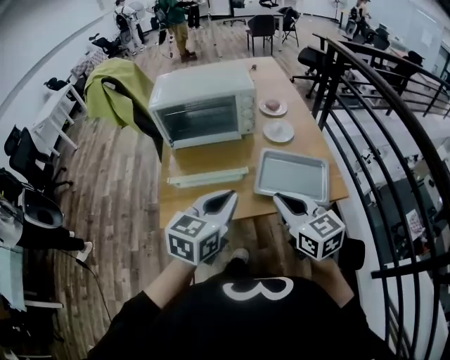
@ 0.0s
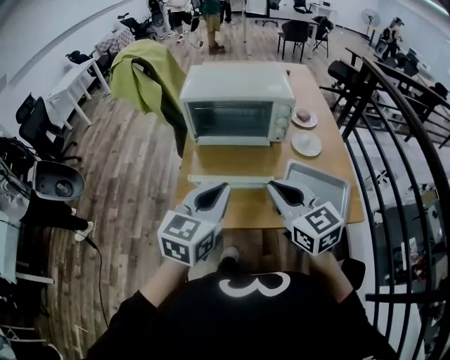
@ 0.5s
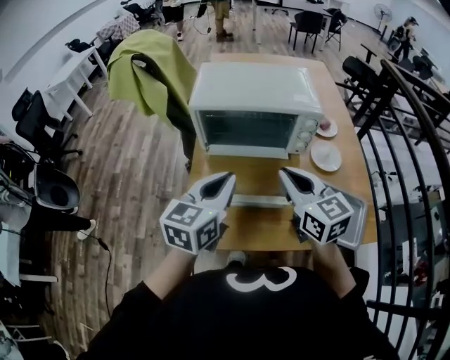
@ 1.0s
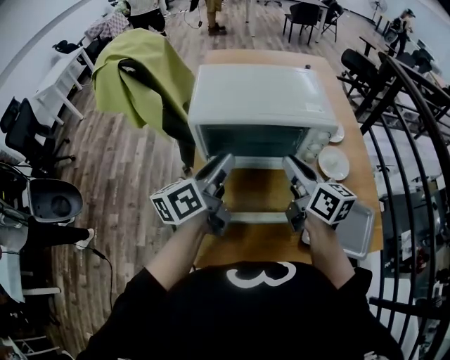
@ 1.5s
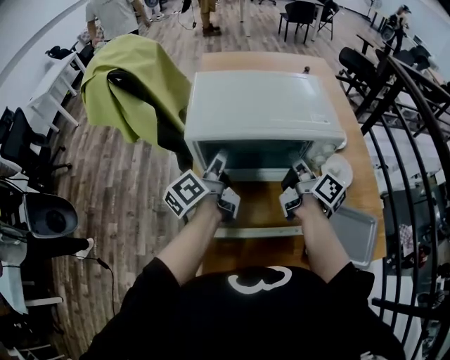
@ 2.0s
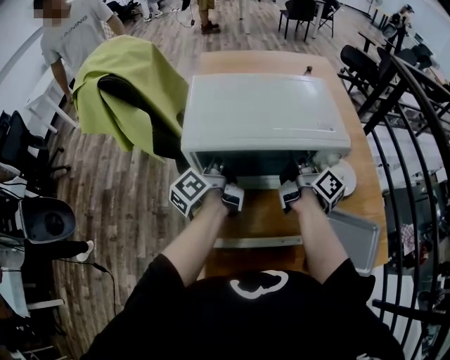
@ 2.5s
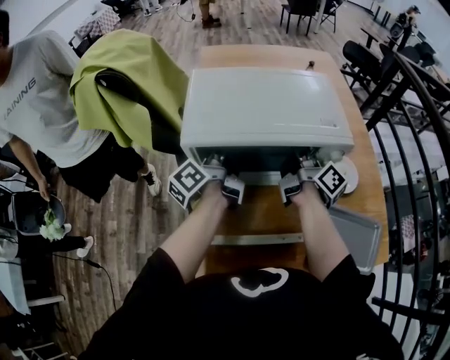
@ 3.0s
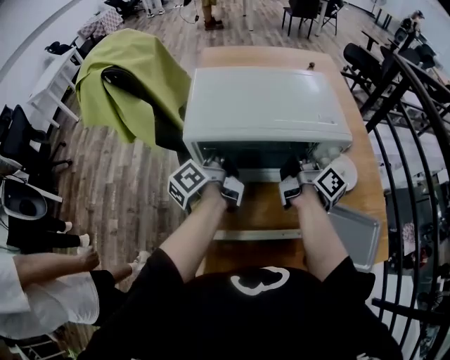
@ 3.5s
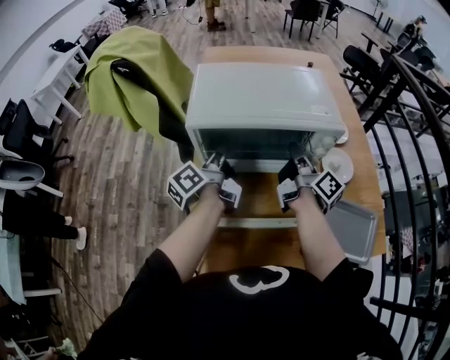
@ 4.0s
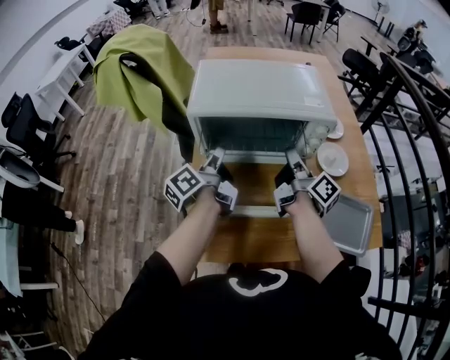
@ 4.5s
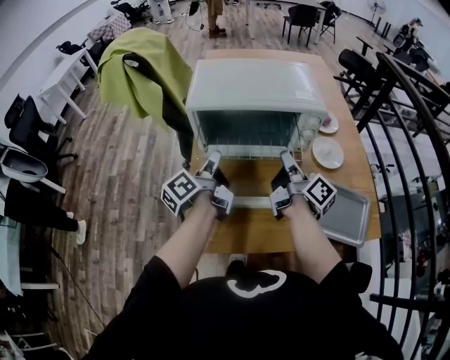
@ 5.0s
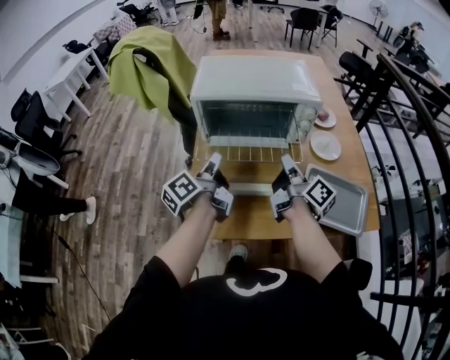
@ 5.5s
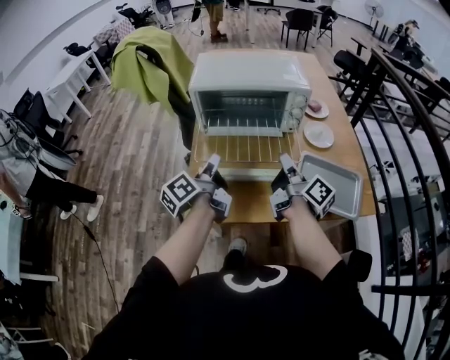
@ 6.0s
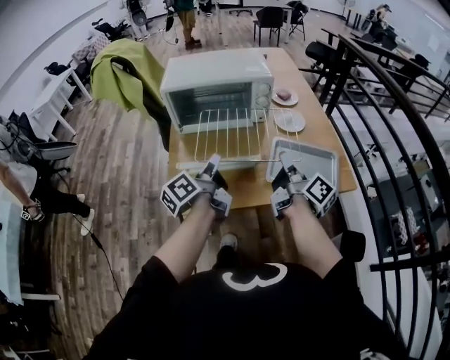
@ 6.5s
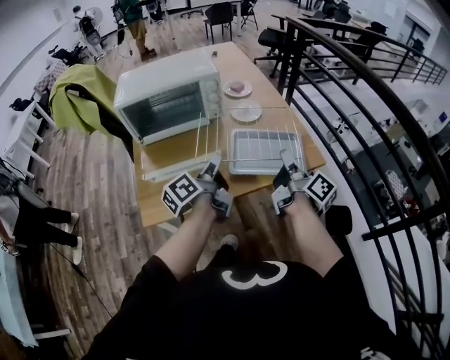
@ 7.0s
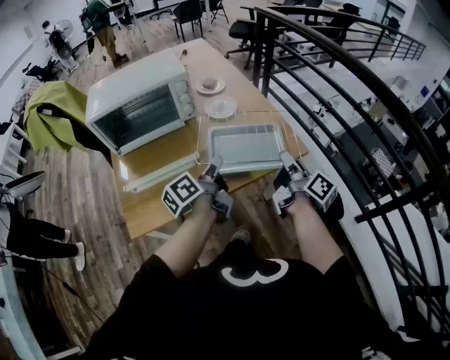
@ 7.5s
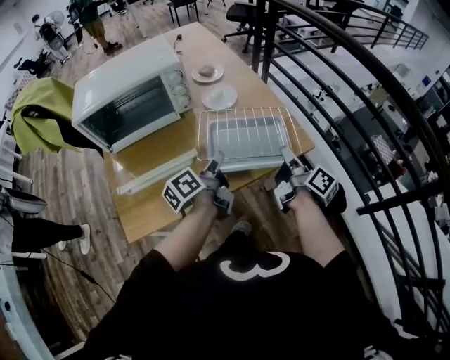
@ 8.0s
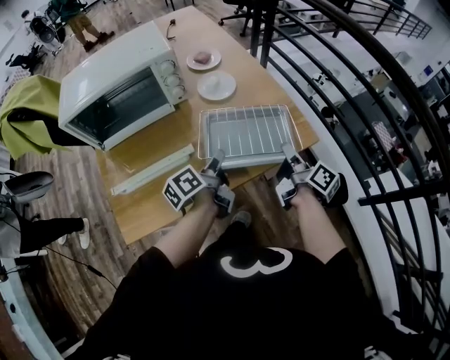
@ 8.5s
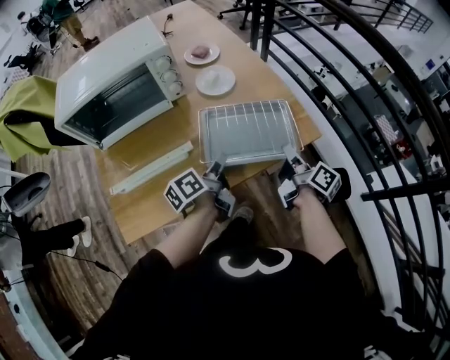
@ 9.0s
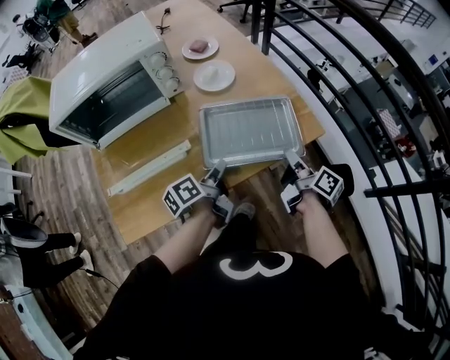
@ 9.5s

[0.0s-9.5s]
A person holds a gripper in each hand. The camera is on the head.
0.0s to 2.0s: Both grippers are carried forward, approximately 50 cm. The right gripper twists about 60 degrees clockwise, seen from behind, and opens. The left gripper rotates around the line of its fingers by roughly 60 degrees, counterclockwise from behind, and opens its fingers.
2.0s to 4.0s: The left gripper closes. The right gripper closes up.
4.0s to 5.5s: The grippers both shift backward by some 15 cm.
5.5s to 7.5s: The left gripper moves approximately 35 cm, and turns by some 30 degrees. Meanwhile the right gripper changes place by approximately 40 cm, and changes its angle by about 20 degrees.
7.5s to 9.5s: Both grippers move downward, approximately 15 cm.

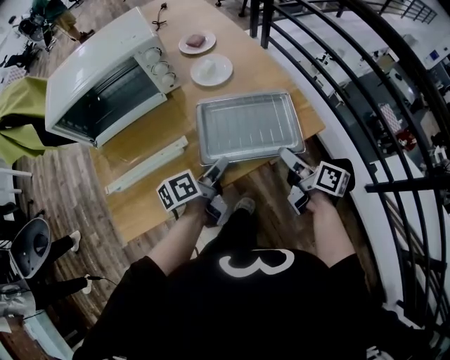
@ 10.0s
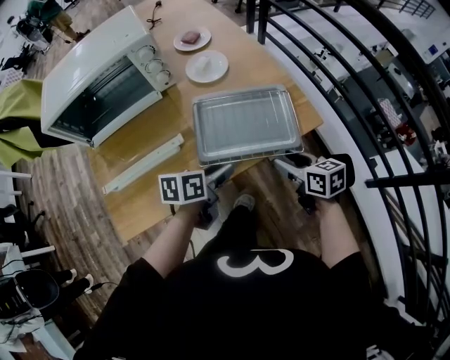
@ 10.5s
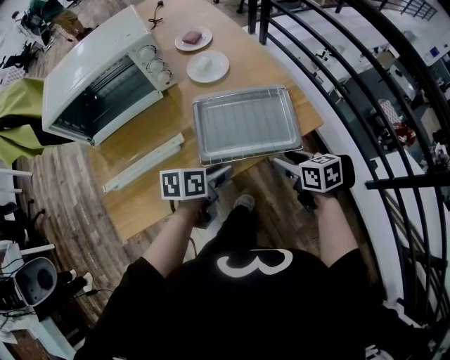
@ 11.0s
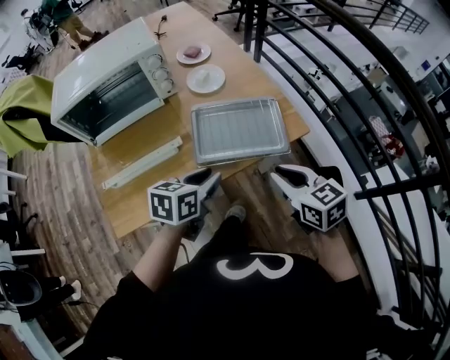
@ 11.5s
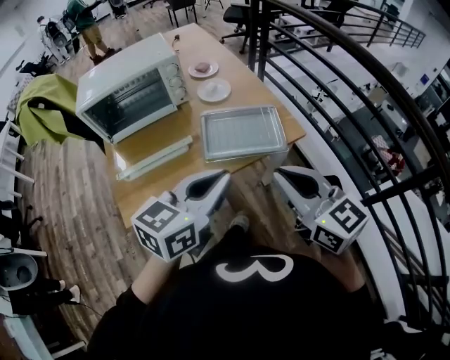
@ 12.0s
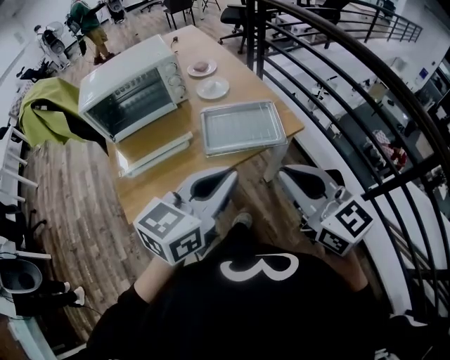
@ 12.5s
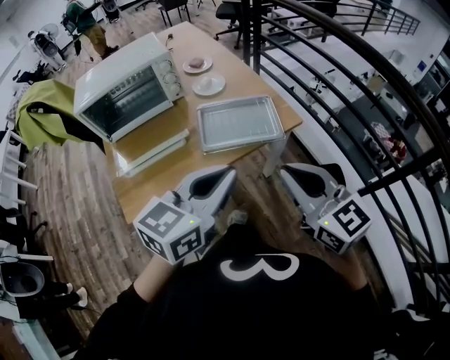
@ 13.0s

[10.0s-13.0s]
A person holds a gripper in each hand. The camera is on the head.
10.0s to 11.5s: The two grippers go about 10 cm upward and backward. The right gripper rolls counterclockwise, seen from behind, by roughly 50 degrees, and closes, while the left gripper rolls clockwise, seen from behind, by some 40 degrees.
11.5s to 13.0s: The grippers both shift upward and backward by about 20 cm. The right gripper changes its angle by roughly 20 degrees; the left gripper turns by some 30 degrees, and closes its fingers.

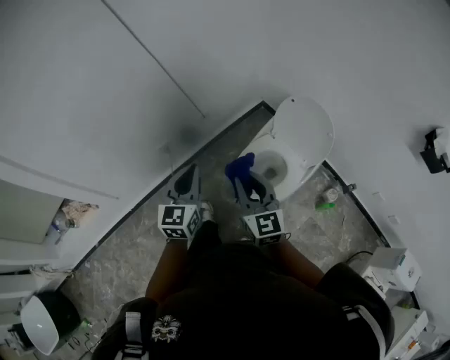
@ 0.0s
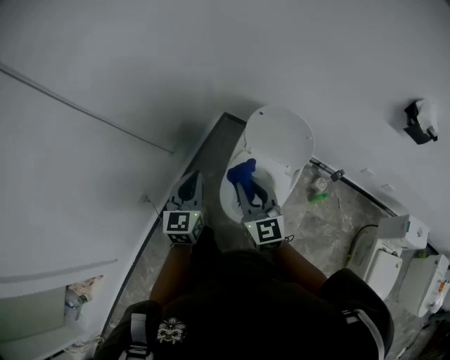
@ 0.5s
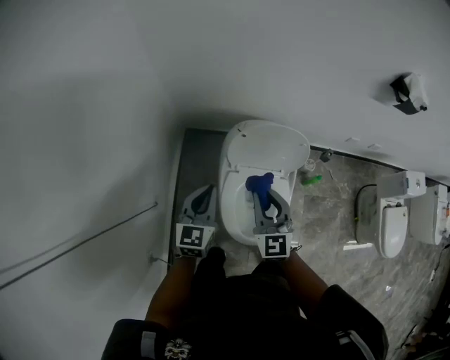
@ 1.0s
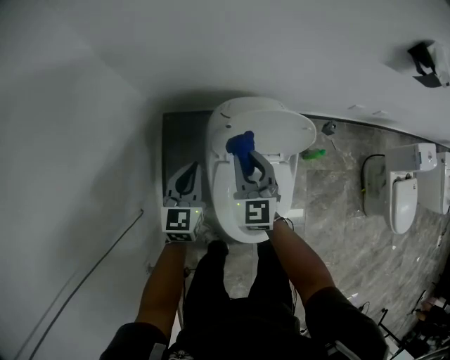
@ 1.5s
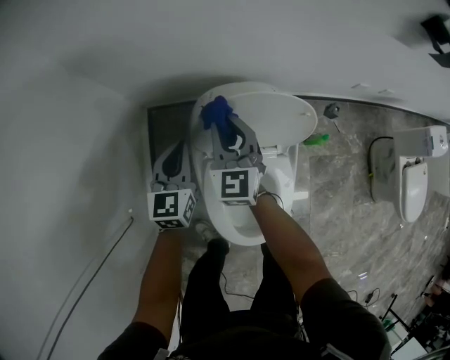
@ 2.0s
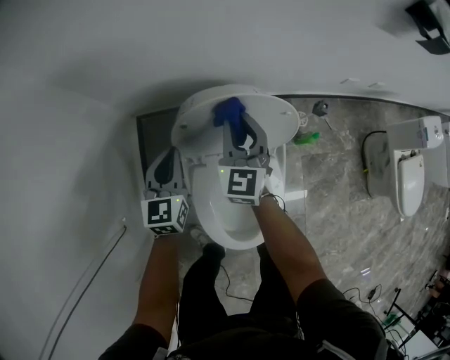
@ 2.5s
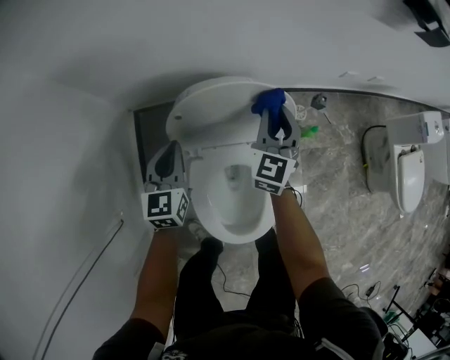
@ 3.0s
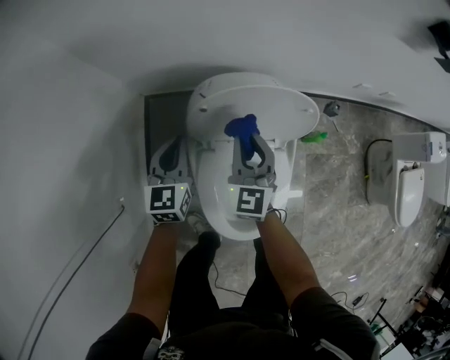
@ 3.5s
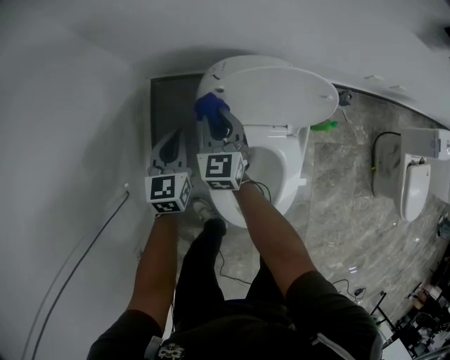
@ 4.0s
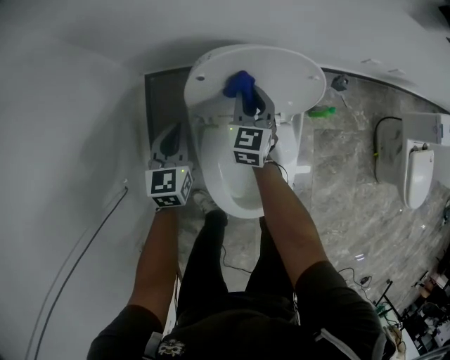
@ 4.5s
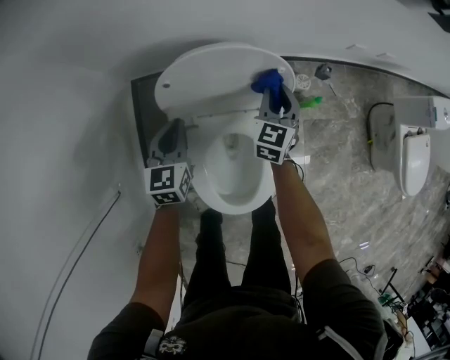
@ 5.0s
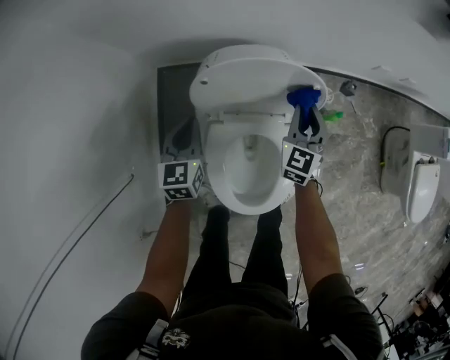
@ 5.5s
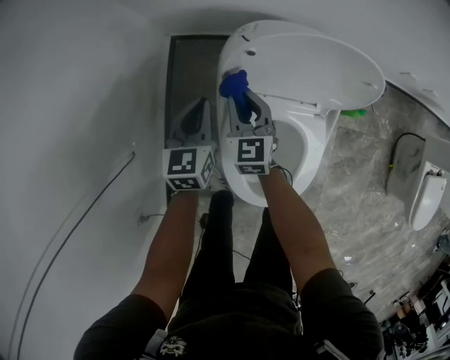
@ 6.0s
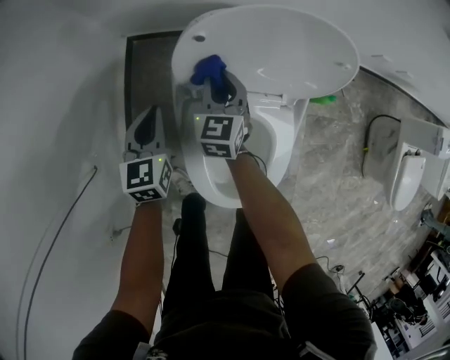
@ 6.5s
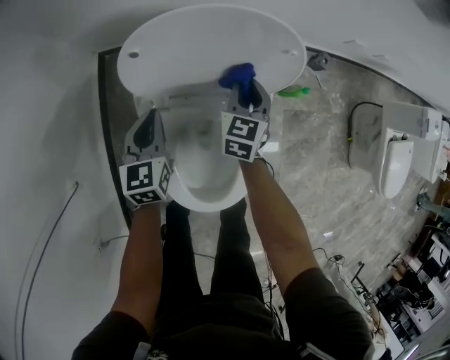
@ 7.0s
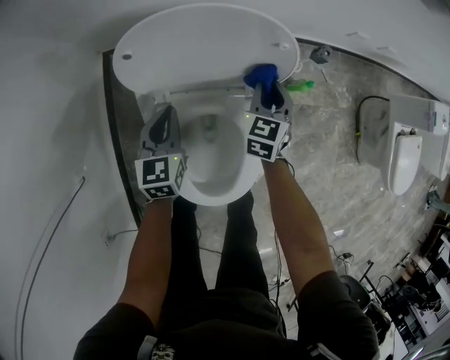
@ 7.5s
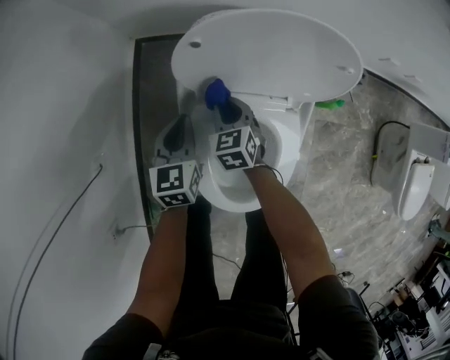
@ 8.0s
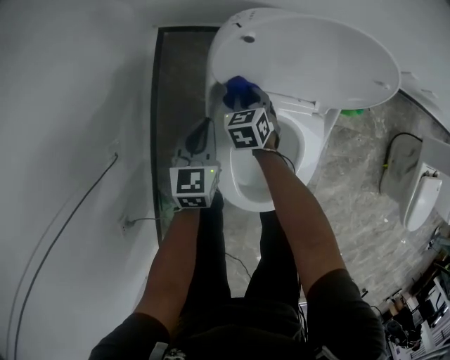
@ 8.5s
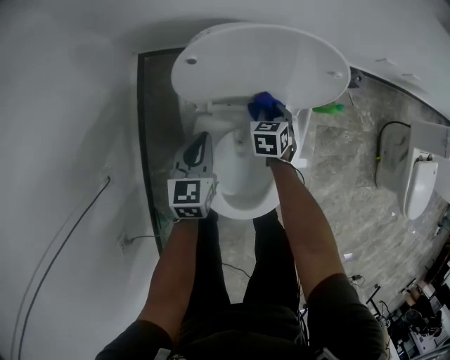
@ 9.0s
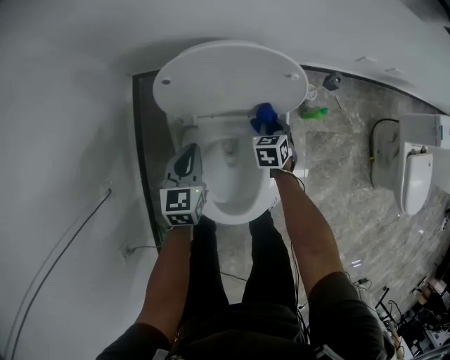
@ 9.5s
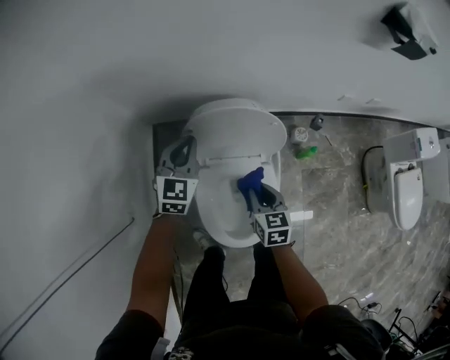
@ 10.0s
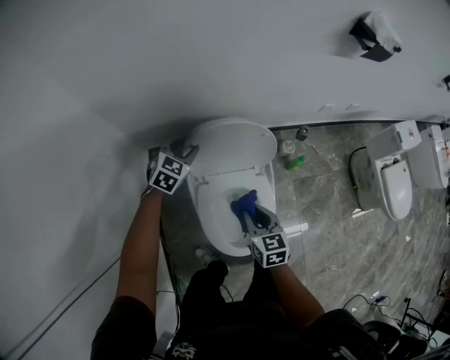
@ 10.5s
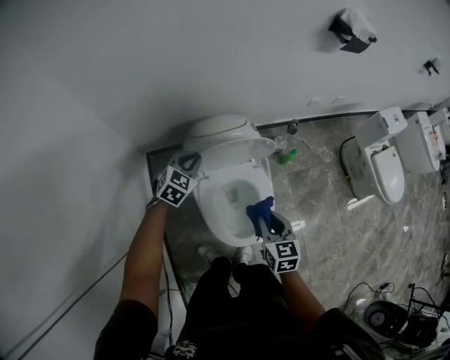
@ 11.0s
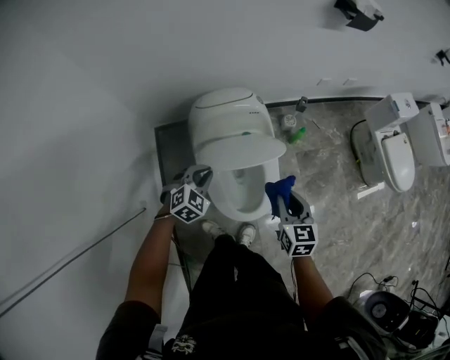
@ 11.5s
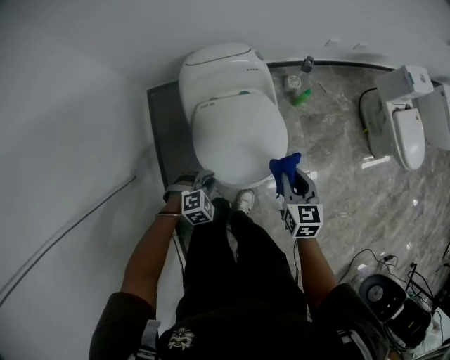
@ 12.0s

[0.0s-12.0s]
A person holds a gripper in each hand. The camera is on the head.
0.0s to 2.0s: The pair of grippers is taken about 50 cm. The right gripper swivels some 60 degrees. The left gripper swivels about 50 degrees.
2.0s to 4.0s: The left gripper shifts some 5 cm downward. The right gripper travels downward by some 10 cm, and reaches some 20 cm to the right, then returns.
4.0s to 6.0s: The right gripper goes to the right and returns, roughly 30 cm each way, while the left gripper moves approximately 10 cm to the right and comes back.
6.0s to 8.0s: The right gripper shifts roughly 10 cm downward, and reaches some 30 cm to the right, then returns; the left gripper travels downward by about 5 cm, and moves about 15 cm to the right and comes back.
8.0s to 10.0s: The right gripper shifts approximately 25 cm upward, to the right and backward, and changes its angle by roughly 30 degrees. The left gripper heads upward and forward, covering approximately 25 cm, and turns by approximately 30 degrees.
10.0s to 12.0s: The left gripper goes approximately 35 cm backward and downward, points its fingers about 40 degrees further downward, and opens, then closes once more, while the right gripper goes approximately 20 cm backward and to the right.

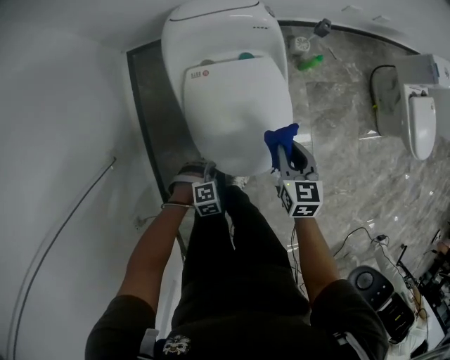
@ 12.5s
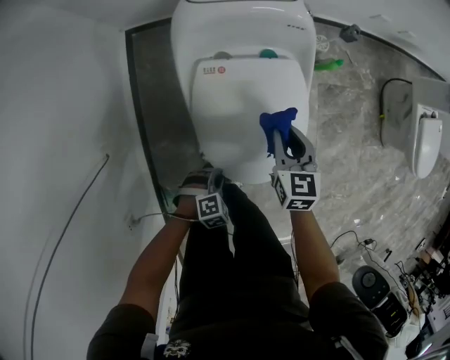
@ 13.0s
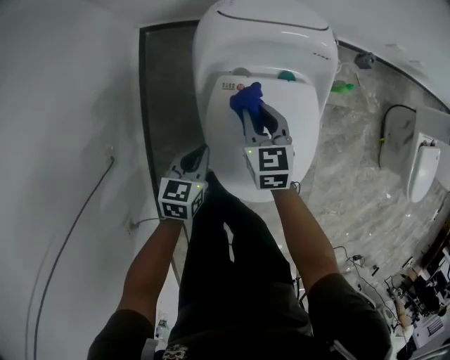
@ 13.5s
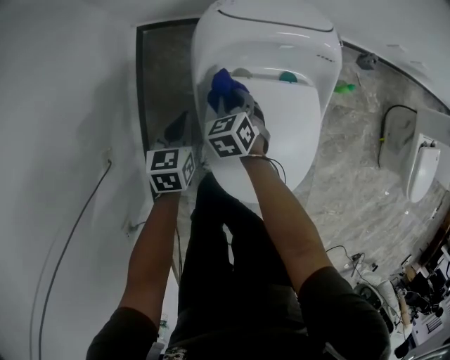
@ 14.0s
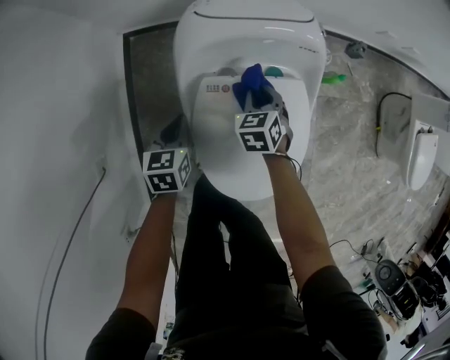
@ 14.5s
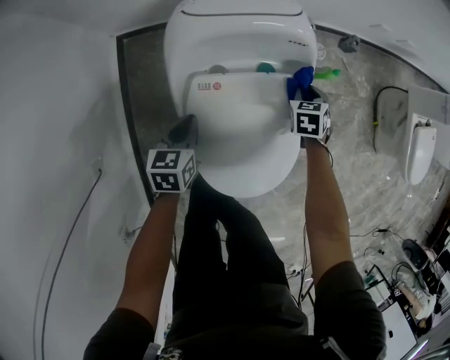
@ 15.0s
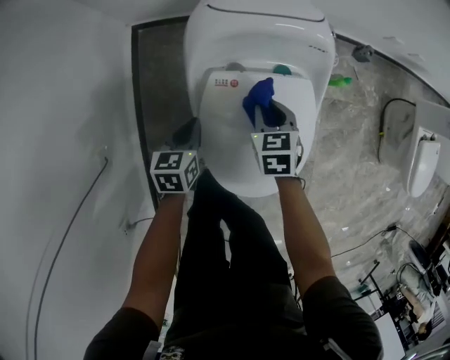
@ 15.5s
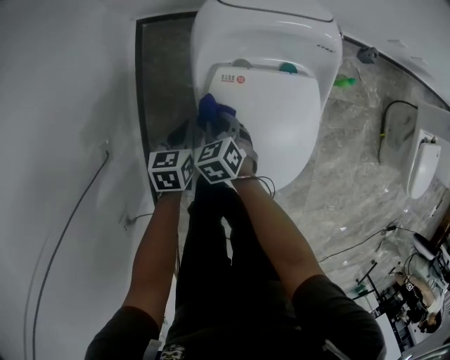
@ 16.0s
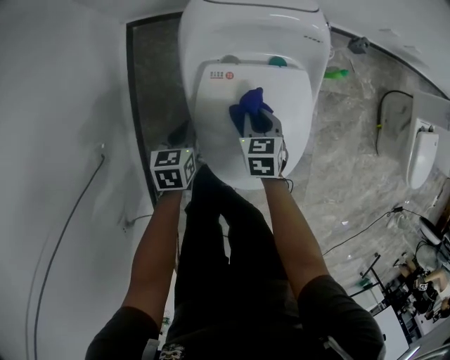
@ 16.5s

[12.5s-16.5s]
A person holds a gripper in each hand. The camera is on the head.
12.5s to 14.5s: The right gripper ends up roughly 30 cm from where it was, and changes its angle by approximately 30 degrees, while the left gripper shifts by some 30 cm, and rotates around the line of its fingers by roughly 80 degrees, counterclockwise from behind.
14.5s to 16.5s: The left gripper shifts by about 5 cm.
